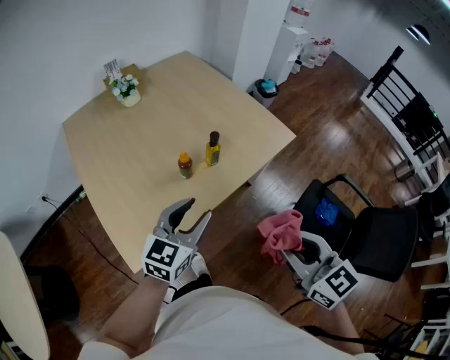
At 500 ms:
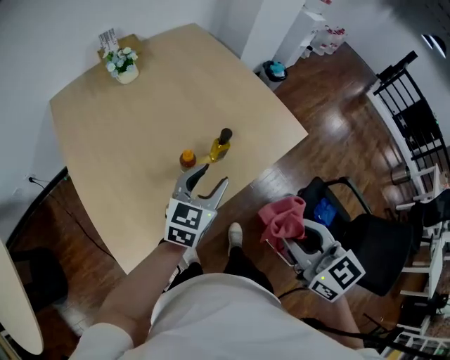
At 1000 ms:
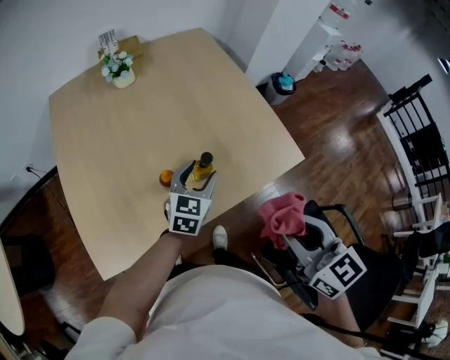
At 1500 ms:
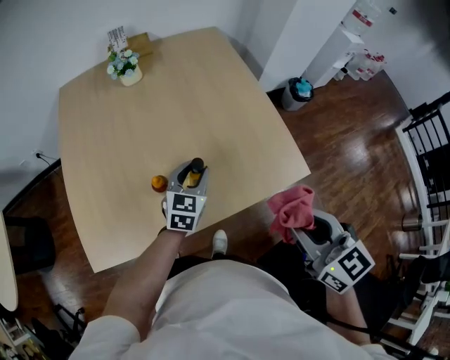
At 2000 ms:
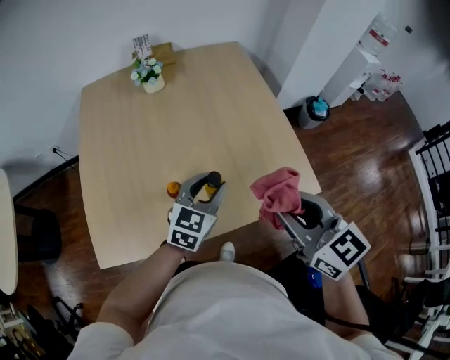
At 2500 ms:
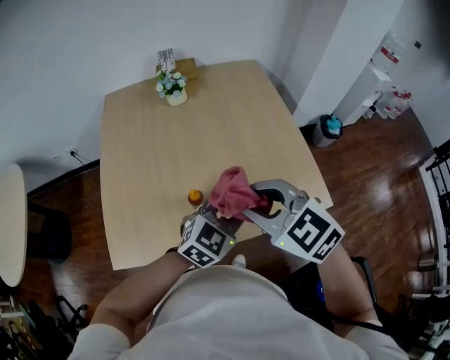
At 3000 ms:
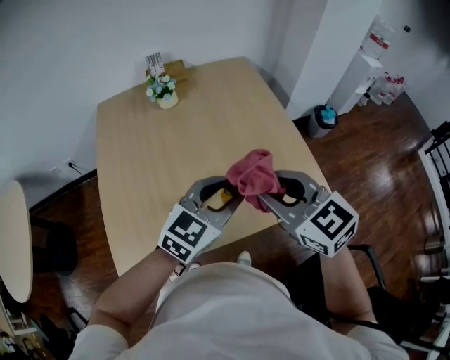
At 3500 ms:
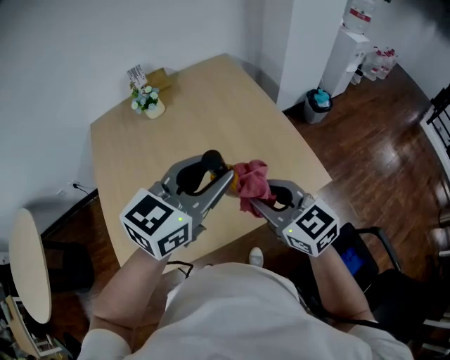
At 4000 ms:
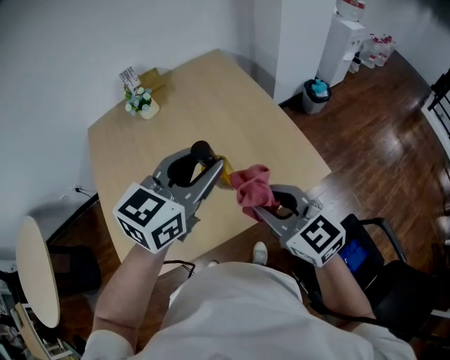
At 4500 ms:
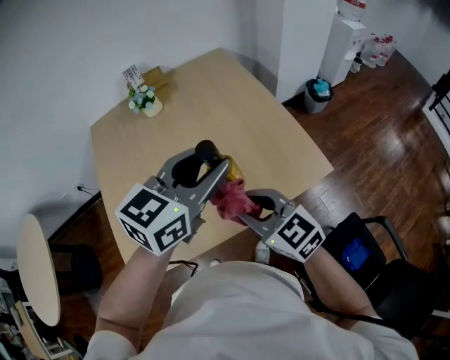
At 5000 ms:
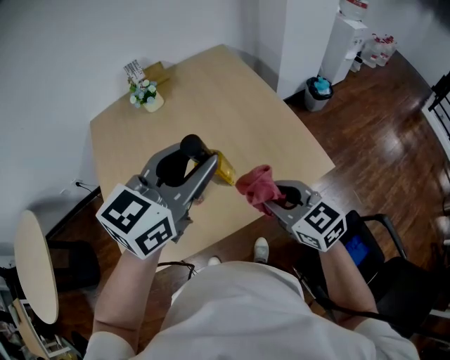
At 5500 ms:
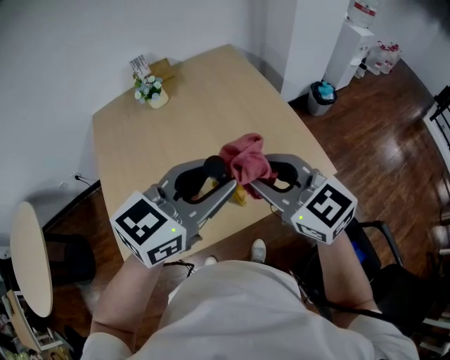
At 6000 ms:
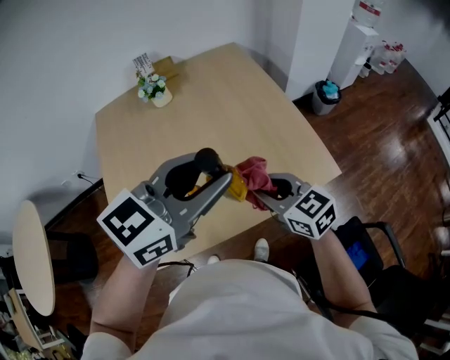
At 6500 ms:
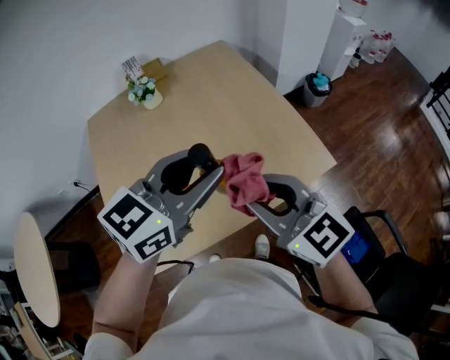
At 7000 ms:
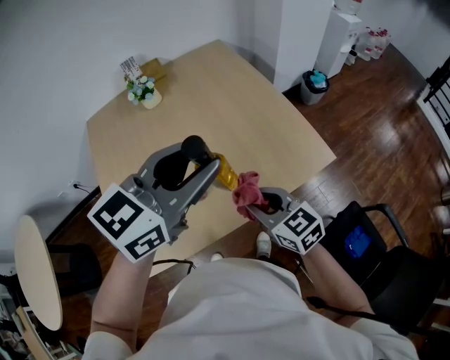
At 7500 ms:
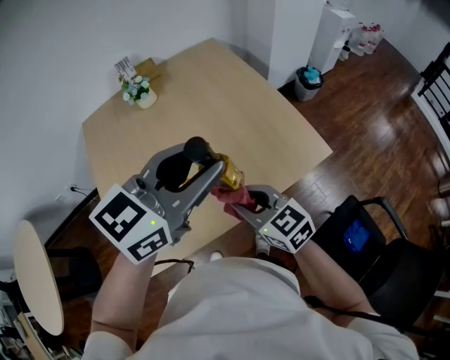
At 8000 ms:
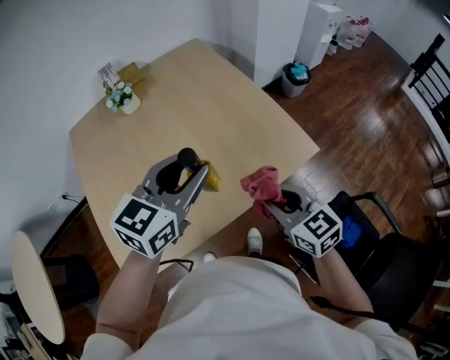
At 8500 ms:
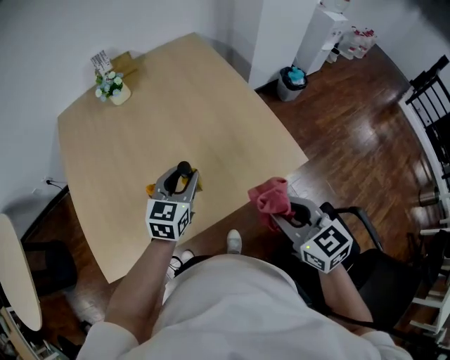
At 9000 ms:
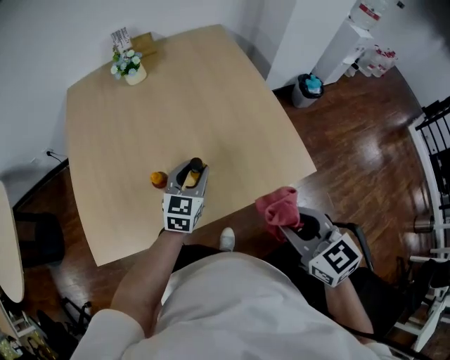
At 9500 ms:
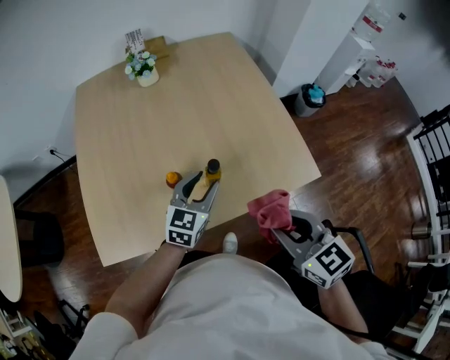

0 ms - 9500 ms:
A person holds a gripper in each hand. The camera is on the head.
0 ms - 2000 ms: The right gripper travels forward by about 30 cm, and swivels approximately 30 degrees, while the left gripper is displaced forward and to the right by about 30 cm, and swivels about 20 degrees.
2000 ms - 4000 ms: The right gripper reaches approximately 15 cm to the left, then returns, while the left gripper moves upward, approximately 20 cm.
4000 ms - 5500 ms: The left gripper is displaced backward by about 5 cm. The right gripper shifts some 5 cm upward.
5500 ms - 7500 ms: The right gripper moves up and down over approximately 15 cm, changing direction 2 times.
7500 ms - 9500 ms: The left gripper travels downward by roughly 25 cm, and rotates roughly 30 degrees; the right gripper moves to the right, some 10 cm.

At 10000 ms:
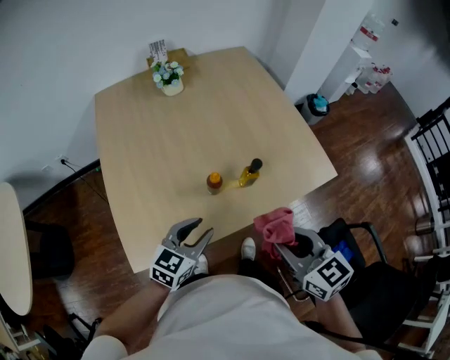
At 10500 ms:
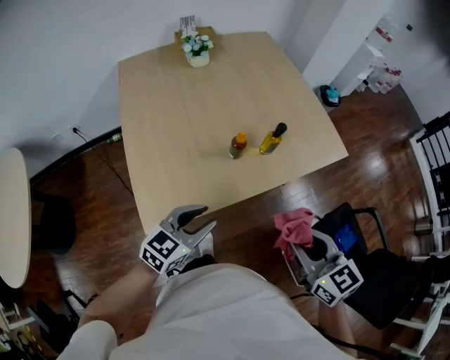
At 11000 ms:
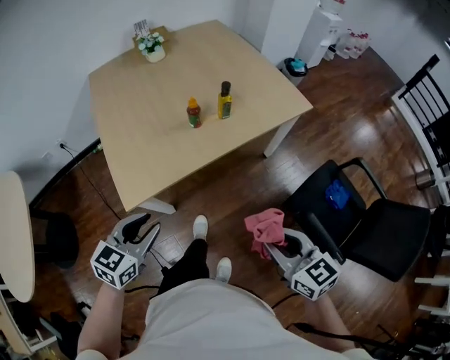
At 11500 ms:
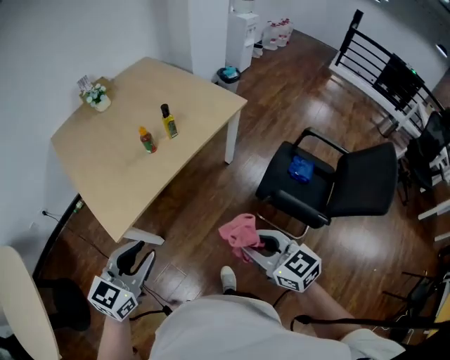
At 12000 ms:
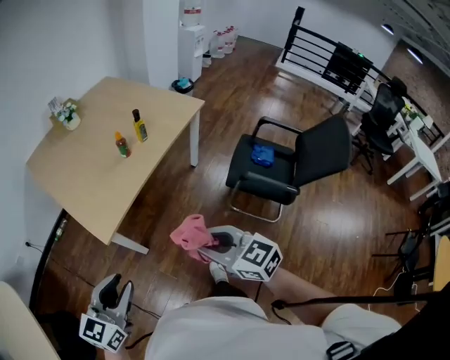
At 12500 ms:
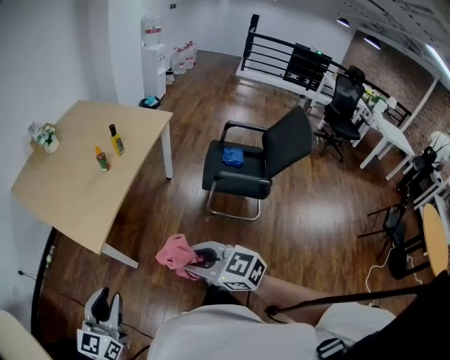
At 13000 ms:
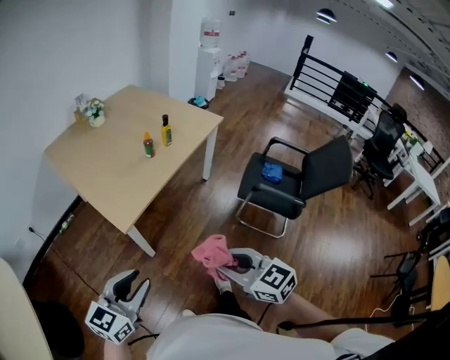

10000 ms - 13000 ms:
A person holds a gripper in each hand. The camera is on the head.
10000 ms - 11500 ms: The grippers both shift backward by approximately 35 cm.
11500 ms - 13000 ms: The left gripper travels backward and to the left by roughly 20 cm, while the right gripper is displaced to the left and backward by some 25 cm.

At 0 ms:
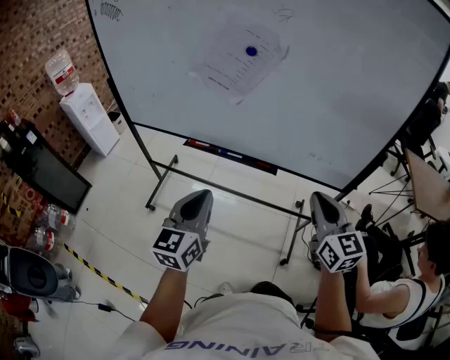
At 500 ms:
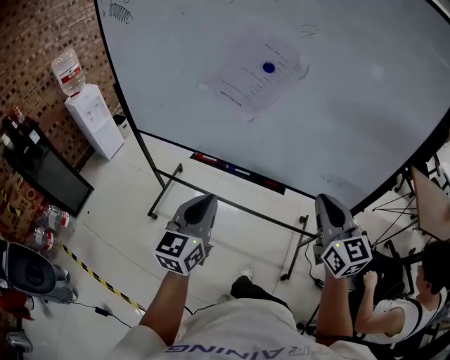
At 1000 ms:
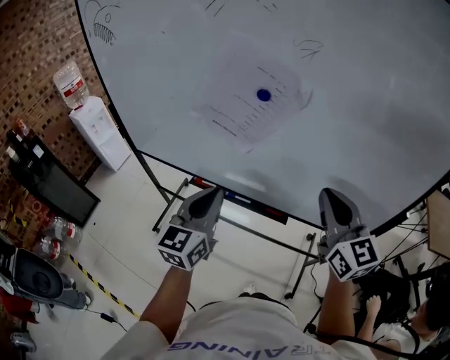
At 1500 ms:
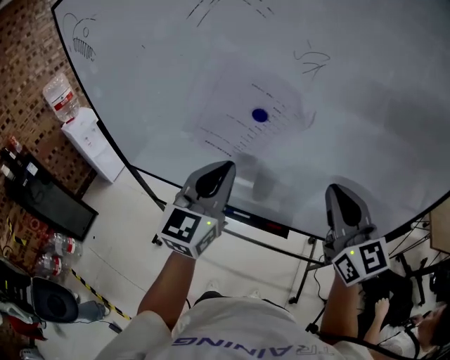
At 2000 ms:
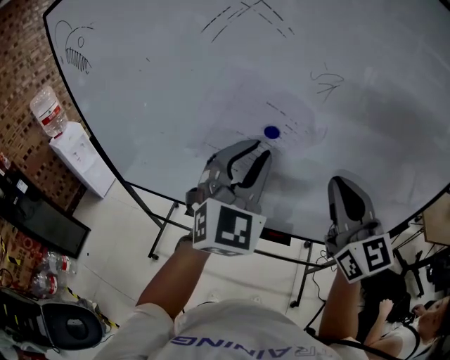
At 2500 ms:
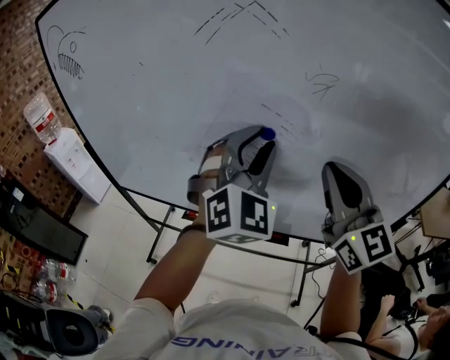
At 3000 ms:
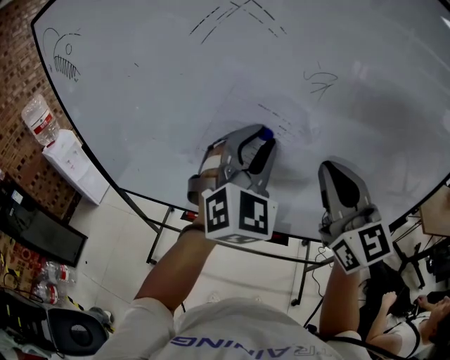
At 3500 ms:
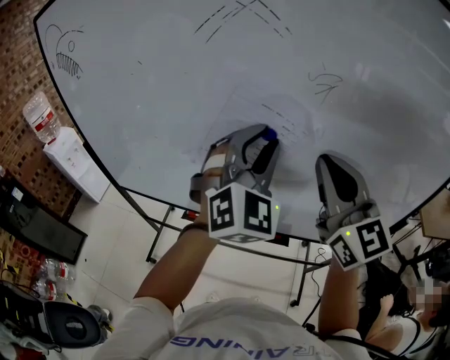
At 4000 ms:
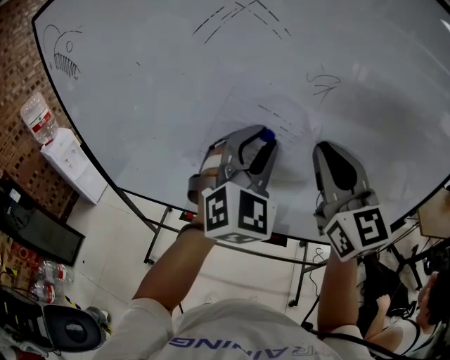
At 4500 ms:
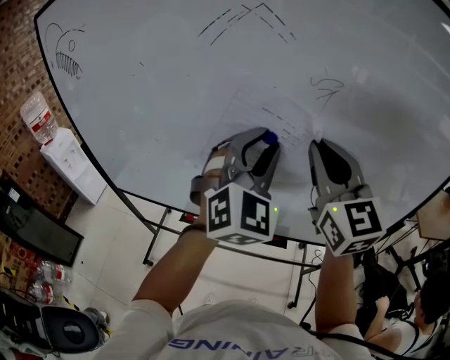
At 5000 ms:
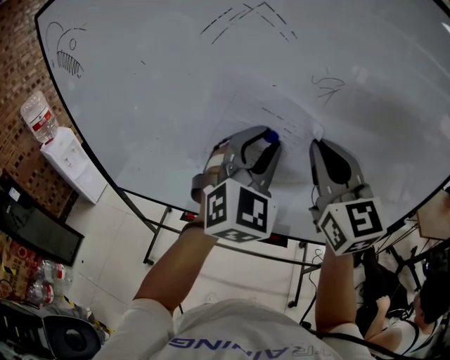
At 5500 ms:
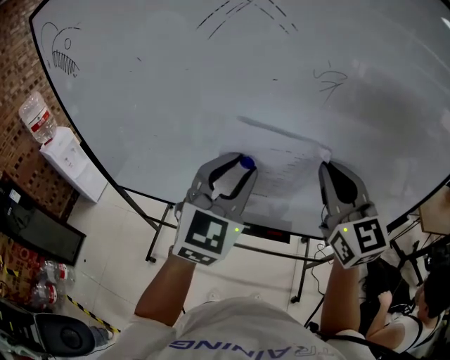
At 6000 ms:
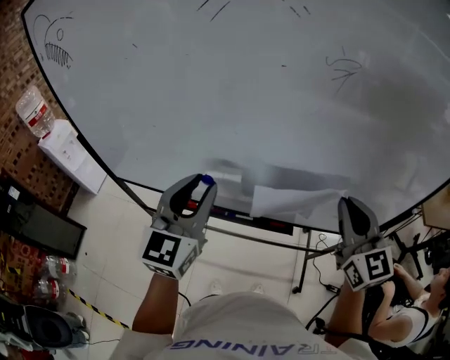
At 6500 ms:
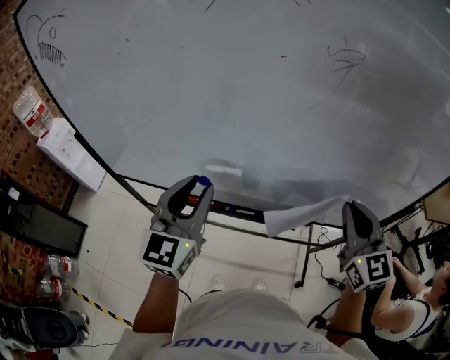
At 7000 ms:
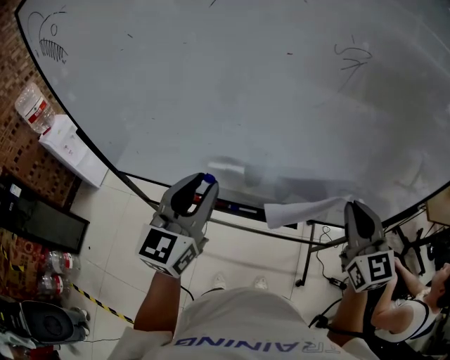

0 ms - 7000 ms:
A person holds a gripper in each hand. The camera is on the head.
0 ms - 2000 ms: The grippers both shift forward and upward by approximately 30 cm. The left gripper twists some 50 degrees clockwise, seen from behind, and opens its fingers.
2000 ms - 3500 ms: The right gripper ends up some 5 cm from where it was.
3500 ms - 5000 ms: The grippers move only a little.
5000 ms - 7000 ms: The right gripper shifts some 20 cm downward and to the right. The left gripper heads to the left, downward and backward, covering roughly 20 cm, and rotates around the line of its fingers by about 40 degrees, counterclockwise from behind.

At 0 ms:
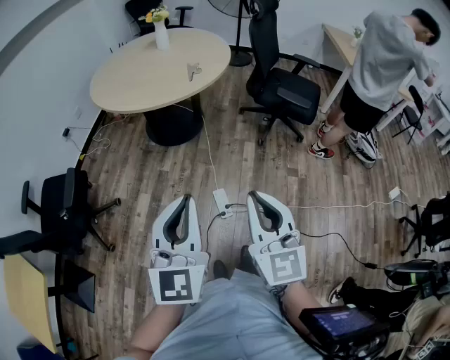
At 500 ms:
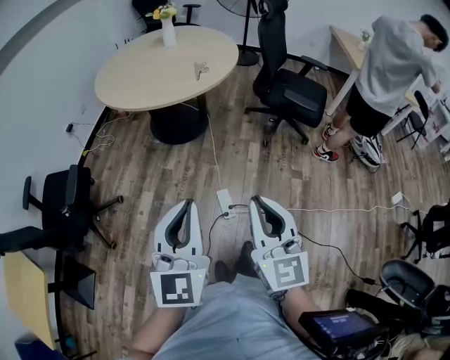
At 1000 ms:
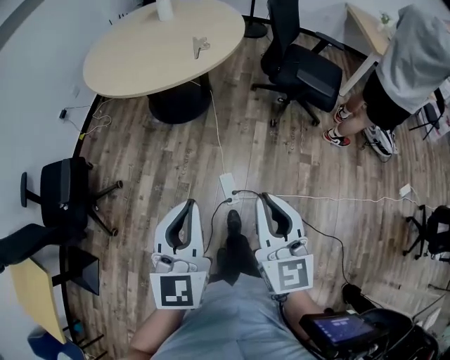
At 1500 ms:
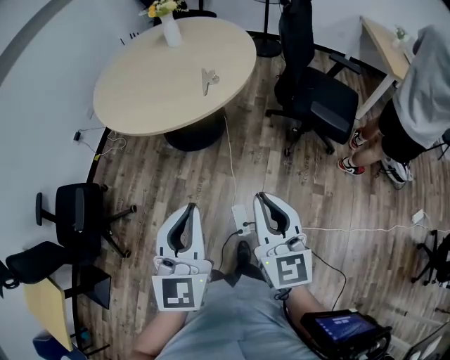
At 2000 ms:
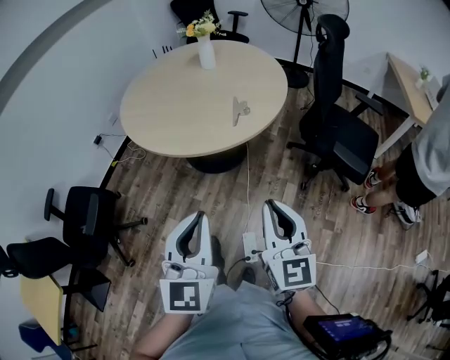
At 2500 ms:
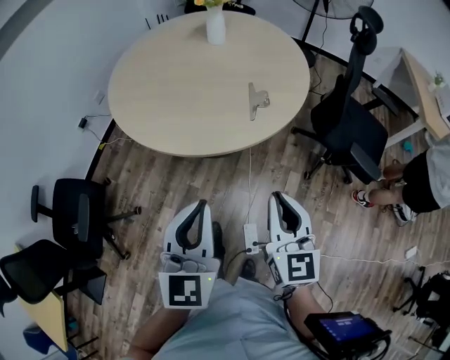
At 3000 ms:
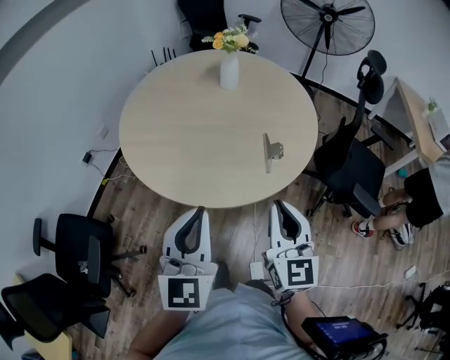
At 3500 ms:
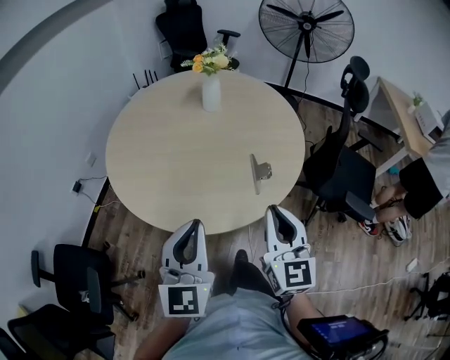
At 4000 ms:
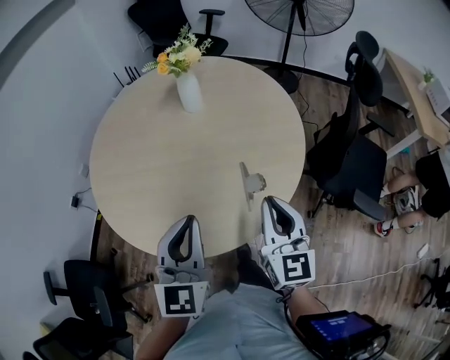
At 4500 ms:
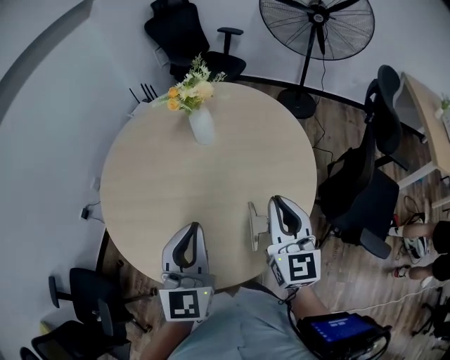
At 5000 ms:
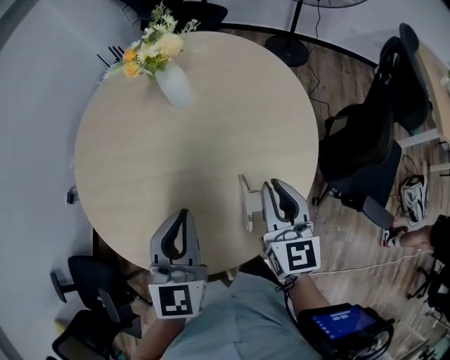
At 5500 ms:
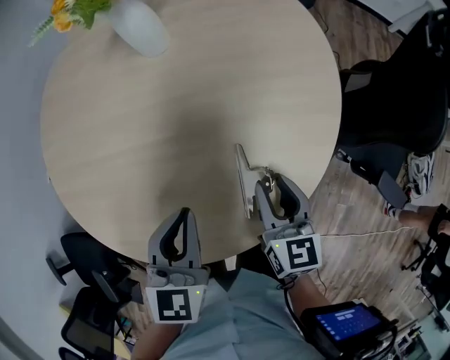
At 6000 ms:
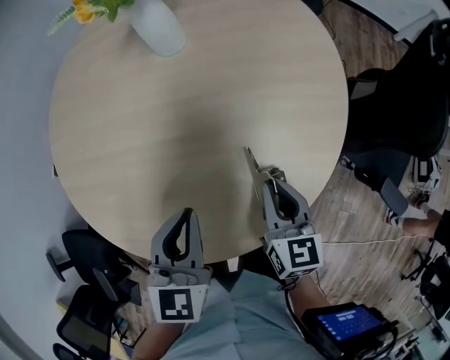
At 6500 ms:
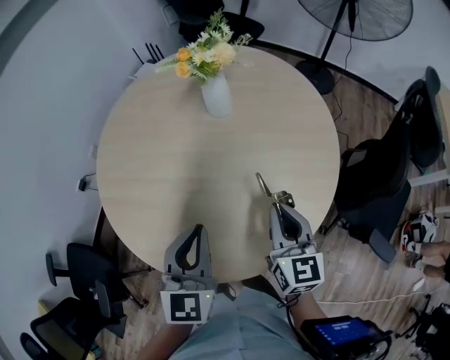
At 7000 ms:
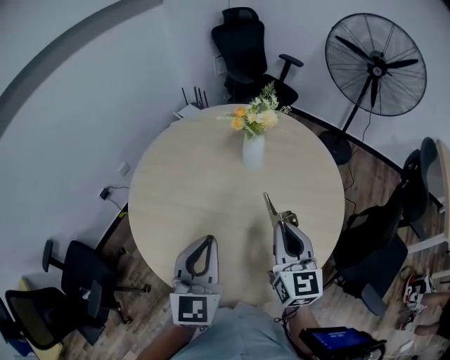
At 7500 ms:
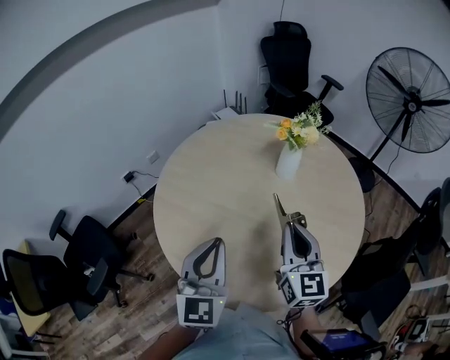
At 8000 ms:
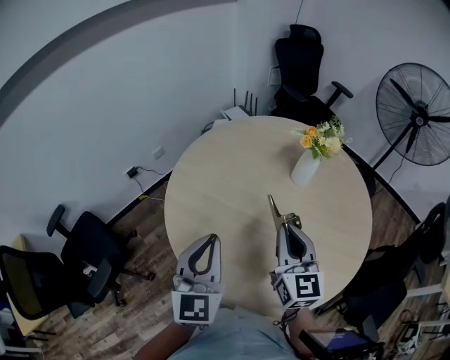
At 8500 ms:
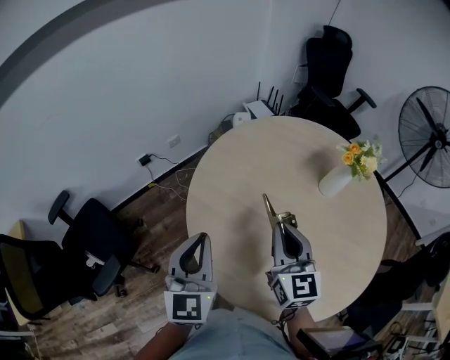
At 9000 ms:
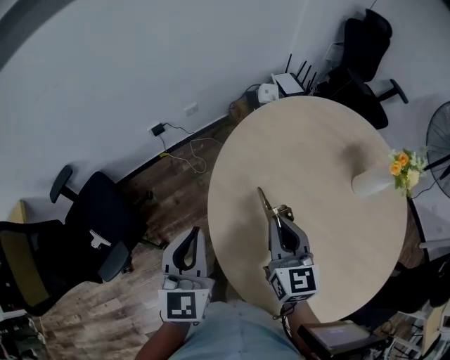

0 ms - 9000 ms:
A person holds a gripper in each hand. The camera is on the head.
0 ms - 2000 ms: Both grippers move forward, roughly 35 cm.
2000 ms - 4500 ms: The two grippers travel together, forward, approximately 60 cm.
4500 ms - 7000 ms: The grippers both shift to the left by some 15 cm. The right gripper goes downward and returns, approximately 25 cm each way, and opens, then closes again. Meanwhile the left gripper moves roughly 25 cm downward and comes back.
7000 ms - 9000 ms: Both grippers are carried some 40 cm. The left gripper swivels approximately 30 degrees; the right gripper rotates roughly 30 degrees.
